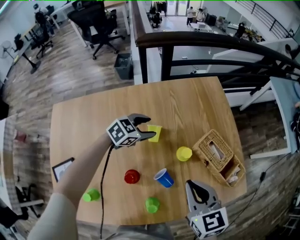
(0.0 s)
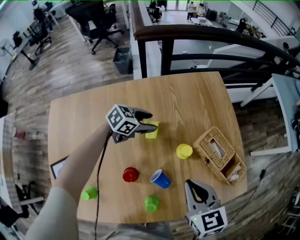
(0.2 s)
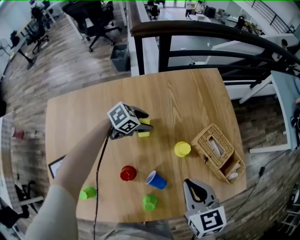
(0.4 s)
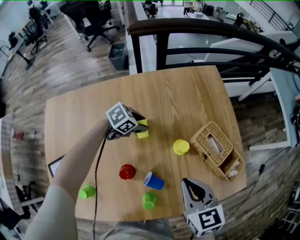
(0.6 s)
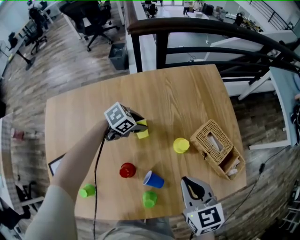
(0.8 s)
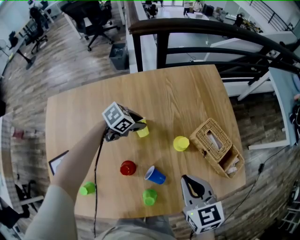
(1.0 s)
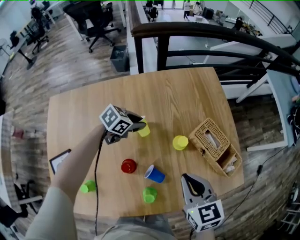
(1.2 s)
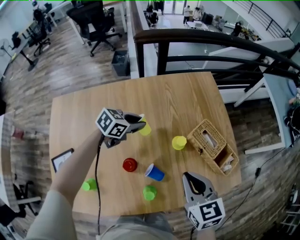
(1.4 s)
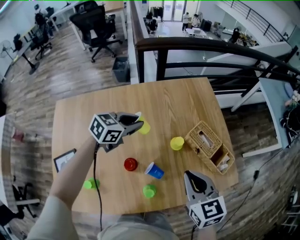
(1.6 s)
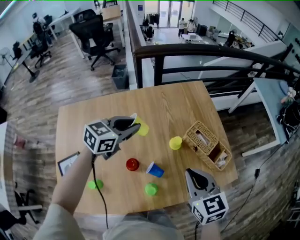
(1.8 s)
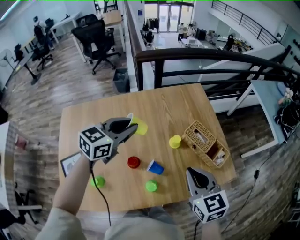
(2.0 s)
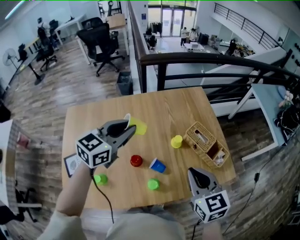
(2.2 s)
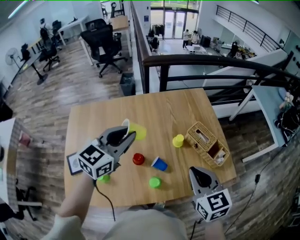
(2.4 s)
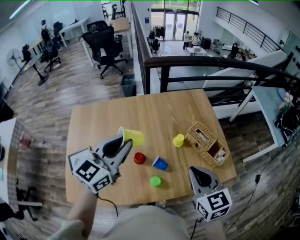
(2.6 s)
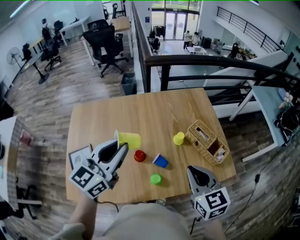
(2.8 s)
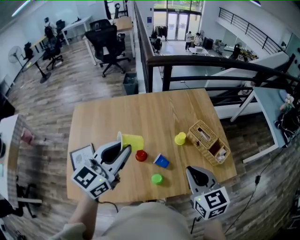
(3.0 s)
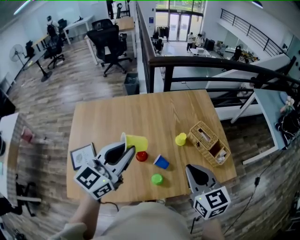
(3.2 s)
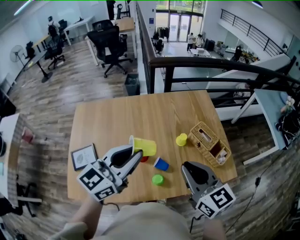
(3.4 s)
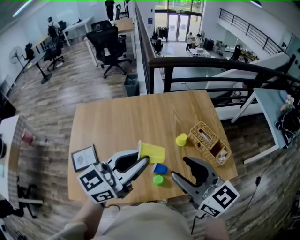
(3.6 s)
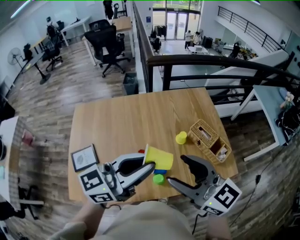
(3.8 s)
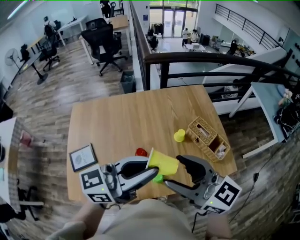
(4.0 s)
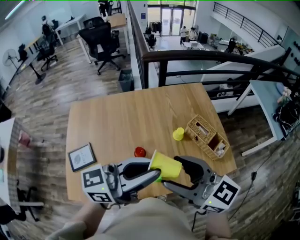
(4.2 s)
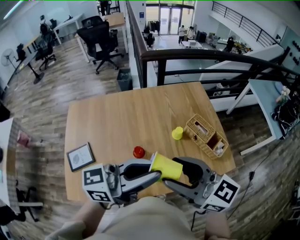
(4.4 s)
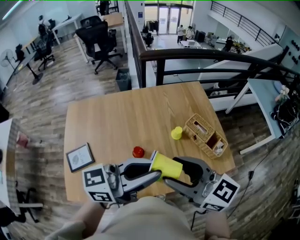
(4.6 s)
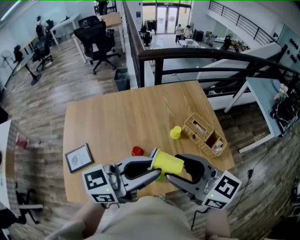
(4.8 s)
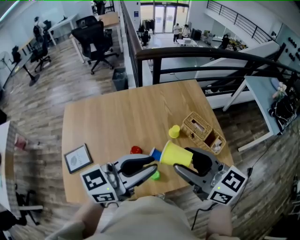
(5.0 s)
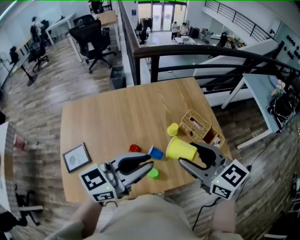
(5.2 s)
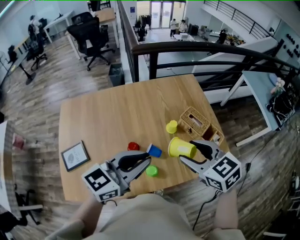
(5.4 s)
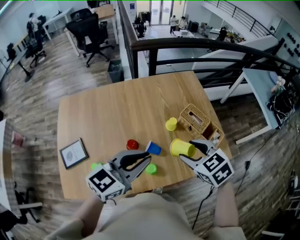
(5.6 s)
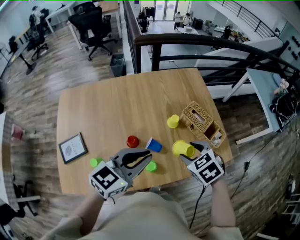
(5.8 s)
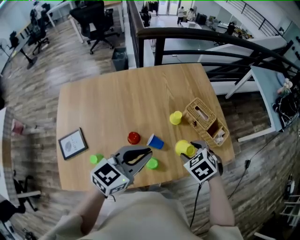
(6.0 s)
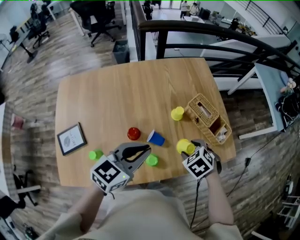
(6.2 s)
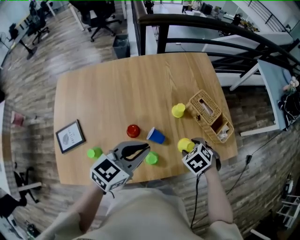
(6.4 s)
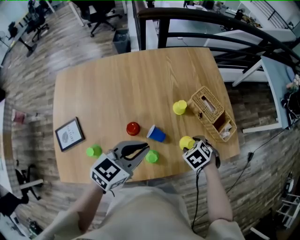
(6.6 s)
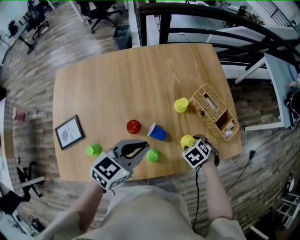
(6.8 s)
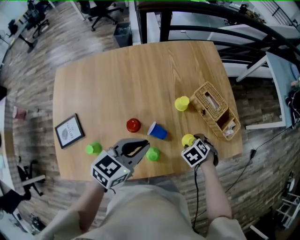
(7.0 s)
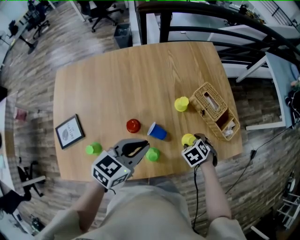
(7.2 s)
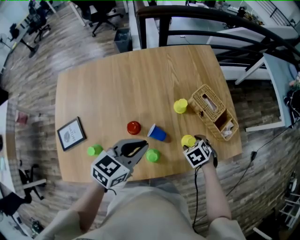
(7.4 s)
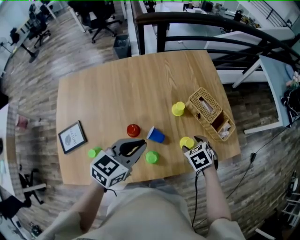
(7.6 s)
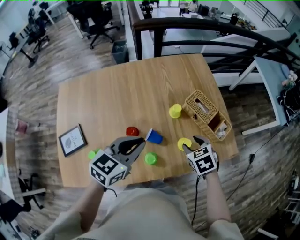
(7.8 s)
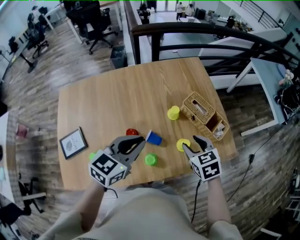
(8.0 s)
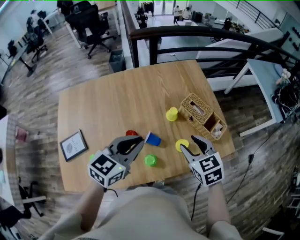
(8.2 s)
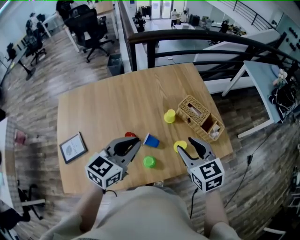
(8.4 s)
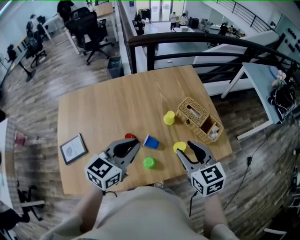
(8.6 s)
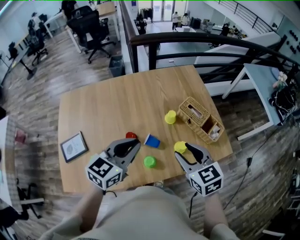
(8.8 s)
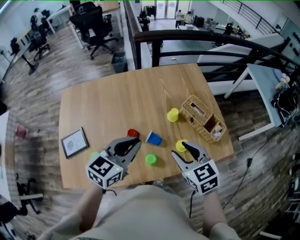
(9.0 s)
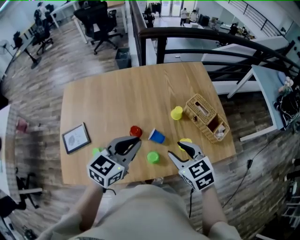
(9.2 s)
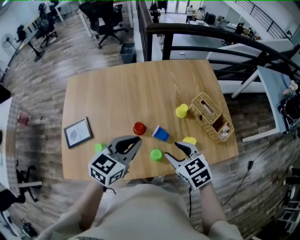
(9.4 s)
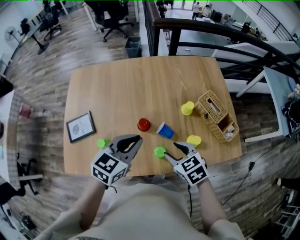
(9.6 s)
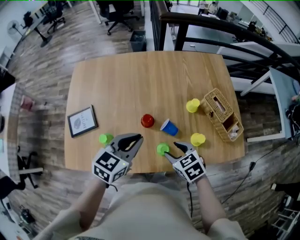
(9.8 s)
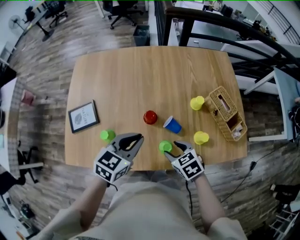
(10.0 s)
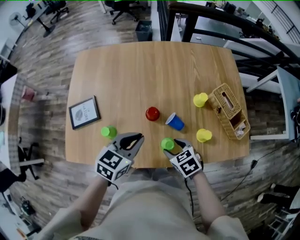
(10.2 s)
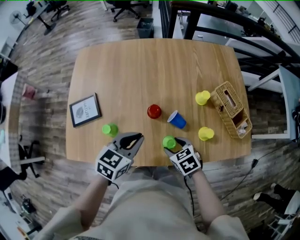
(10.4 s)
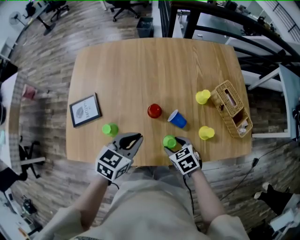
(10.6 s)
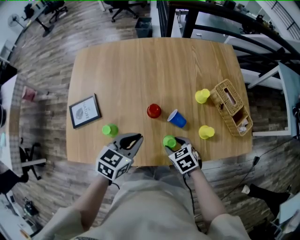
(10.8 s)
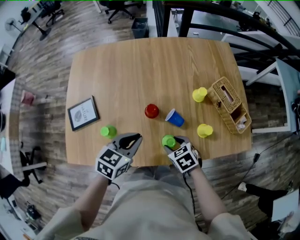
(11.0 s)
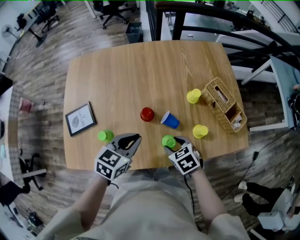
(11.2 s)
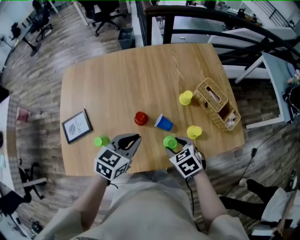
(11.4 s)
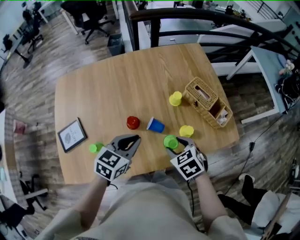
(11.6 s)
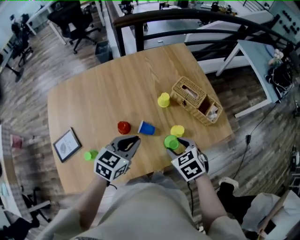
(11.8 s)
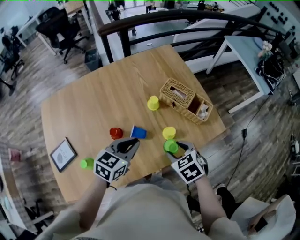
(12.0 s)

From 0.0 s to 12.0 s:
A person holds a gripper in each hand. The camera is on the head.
From 0.0 s to 1.6 s: The left gripper is displaced upward and backward by about 15 cm, and closes its fingers. Meanwhile the right gripper moves about 5 cm.
From 1.6 s to 3.0 s: The right gripper travels backward and upward by some 15 cm. Meanwhile the left gripper is displaced backward and upward by approximately 35 cm, and rotates roughly 40 degrees.
From 3.0 s to 4.4 s: The right gripper travels upward and to the left by some 15 cm, changes its angle by about 40 degrees, and opens up. The left gripper is displaced to the right and backward by some 10 cm, and swivels about 50 degrees.
From 4.4 s to 6.0 s: The right gripper moves downward and to the right, approximately 25 cm, and tilts its fingers roughly 60 degrees downward; the left gripper travels downward by approximately 15 cm, and points its fingers about 30 degrees further downward.
From 6.0 s to 7.6 s: The left gripper shifts some 5 cm downward. Meanwhile the right gripper goes approximately 10 cm downward.
From 7.6 s to 9.0 s: The right gripper is displaced upward by about 20 cm, and tilts its fingers roughly 30 degrees upward; the left gripper shifts roughly 5 cm upward.
From 9.0 s to 10.4 s: The two grippers go roughly 20 cm downward and to the left. The right gripper rotates about 30 degrees; the left gripper turns by some 20 degrees.
From 10.4 s to 12.0 s: The left gripper ends up roughly 15 cm from where it was, and turns by roughly 20 degrees. The right gripper shifts by about 20 cm, and turns by roughly 20 degrees.

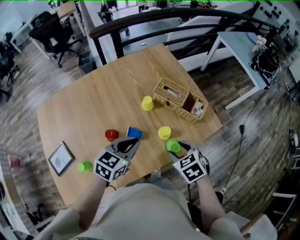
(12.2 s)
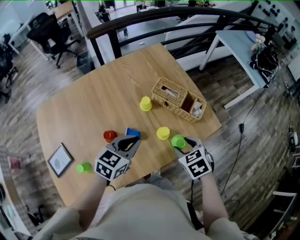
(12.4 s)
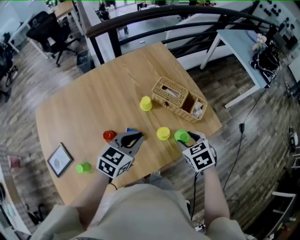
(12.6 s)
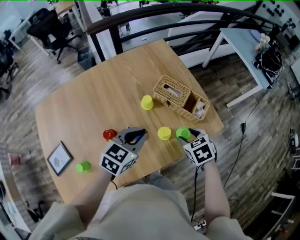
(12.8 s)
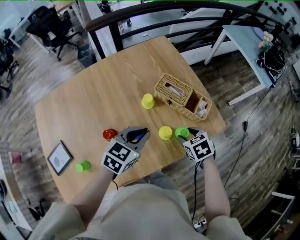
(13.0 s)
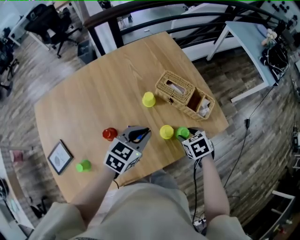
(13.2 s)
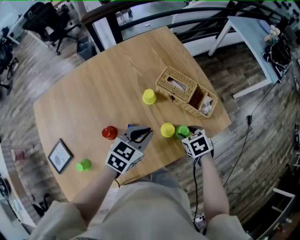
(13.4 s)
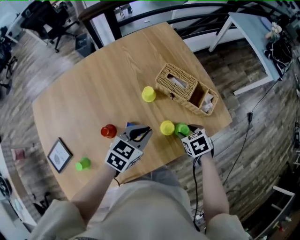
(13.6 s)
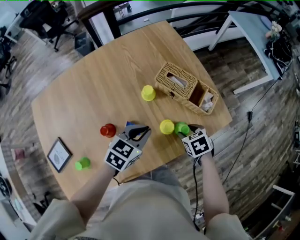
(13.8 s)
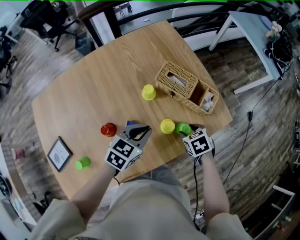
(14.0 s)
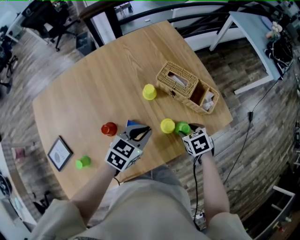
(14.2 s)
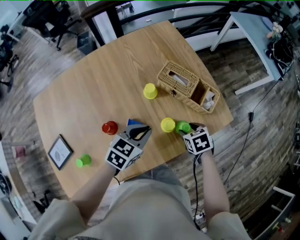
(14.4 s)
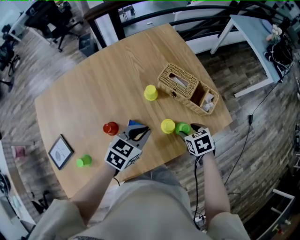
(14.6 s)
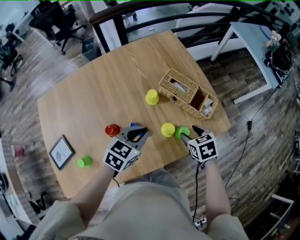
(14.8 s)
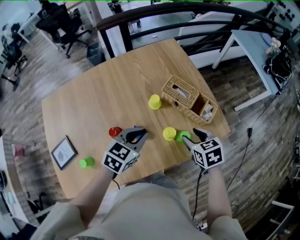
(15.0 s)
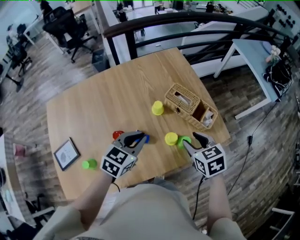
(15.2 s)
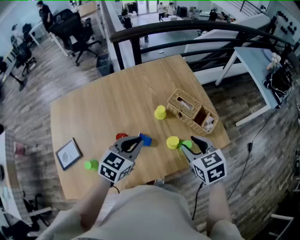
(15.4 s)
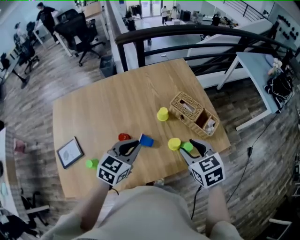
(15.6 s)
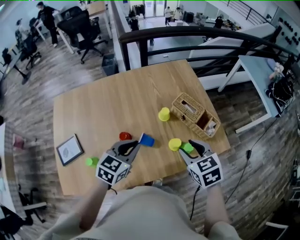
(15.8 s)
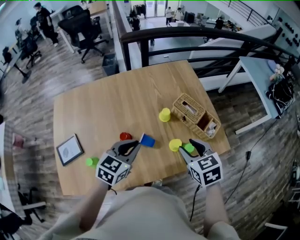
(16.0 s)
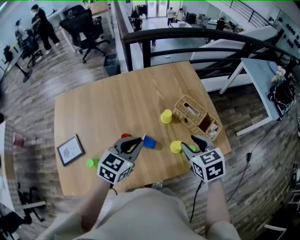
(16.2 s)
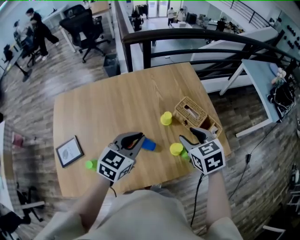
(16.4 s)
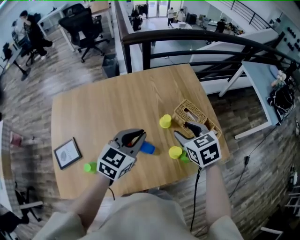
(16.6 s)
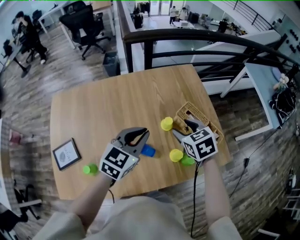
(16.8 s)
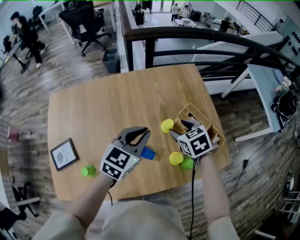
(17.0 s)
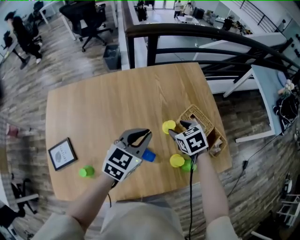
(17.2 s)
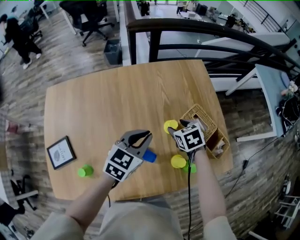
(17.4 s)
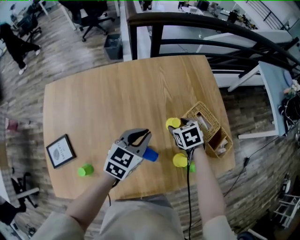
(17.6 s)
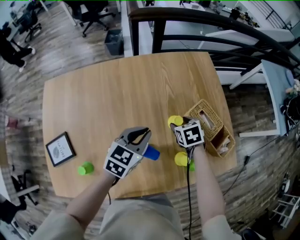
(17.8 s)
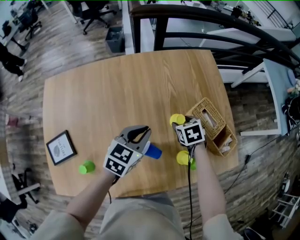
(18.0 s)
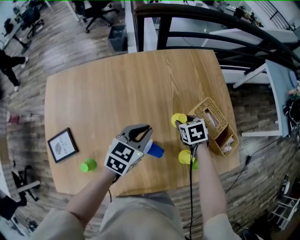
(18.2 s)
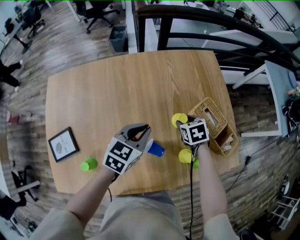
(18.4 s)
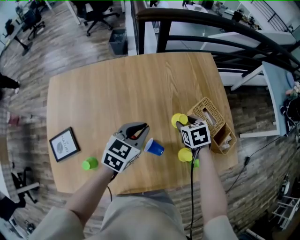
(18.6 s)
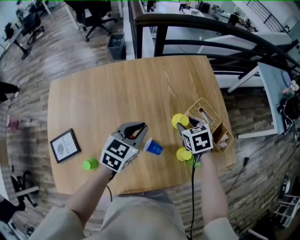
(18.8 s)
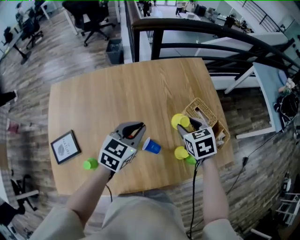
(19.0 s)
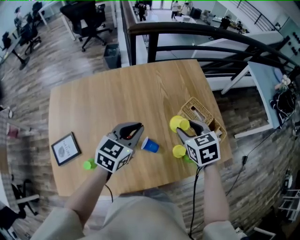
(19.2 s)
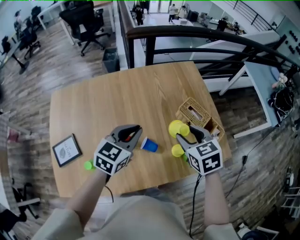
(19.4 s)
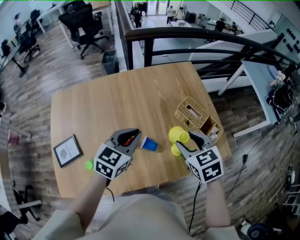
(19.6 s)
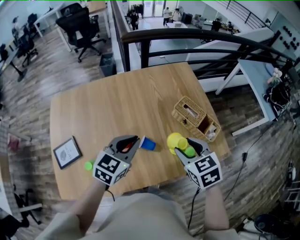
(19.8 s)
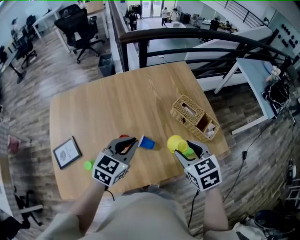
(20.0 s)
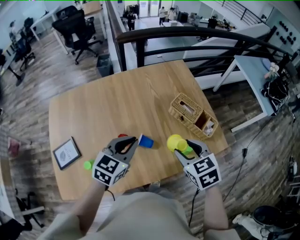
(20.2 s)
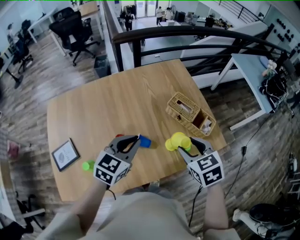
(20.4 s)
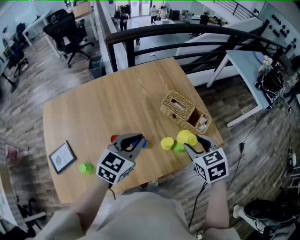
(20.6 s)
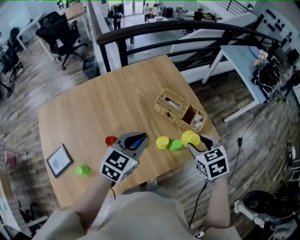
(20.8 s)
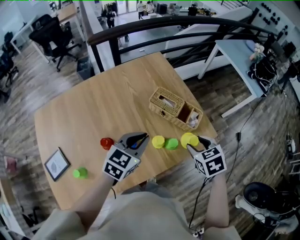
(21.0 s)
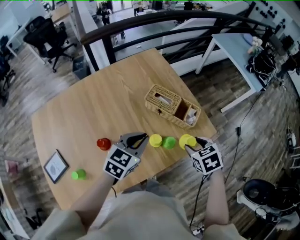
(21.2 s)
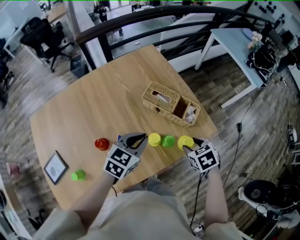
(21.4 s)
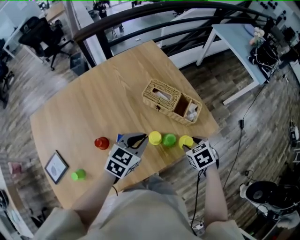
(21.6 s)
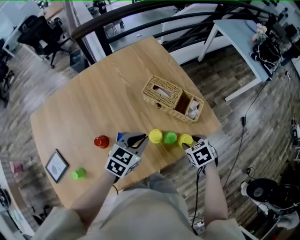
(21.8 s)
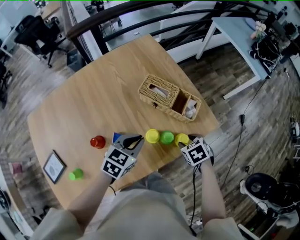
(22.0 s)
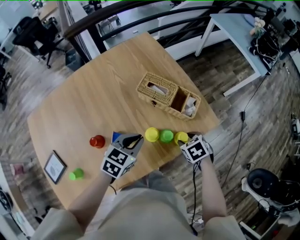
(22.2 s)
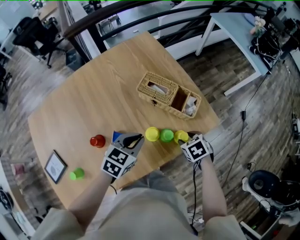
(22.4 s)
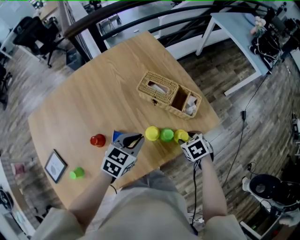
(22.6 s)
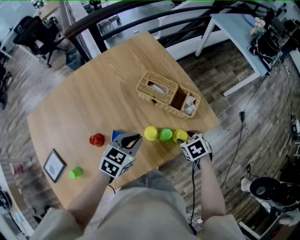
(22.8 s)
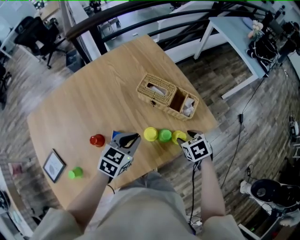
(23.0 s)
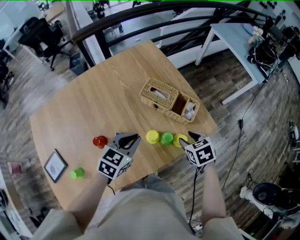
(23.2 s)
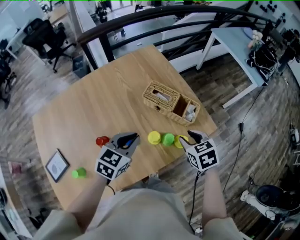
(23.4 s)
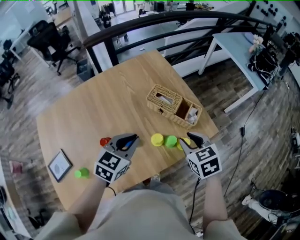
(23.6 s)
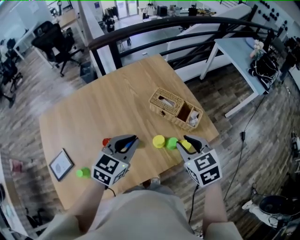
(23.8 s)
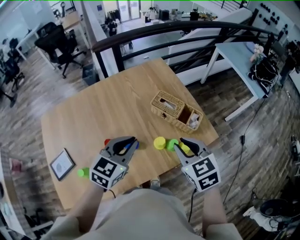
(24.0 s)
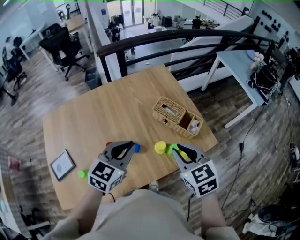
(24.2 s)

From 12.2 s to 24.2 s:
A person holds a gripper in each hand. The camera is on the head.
From 12.2 s to 13.8 s: The right gripper goes about 15 cm downward and forward. The left gripper travels downward and forward by roughly 10 cm.
From 13.8 s to 15.2 s: The right gripper travels upward by some 15 cm, and rotates roughly 20 degrees; the left gripper is displaced upward by approximately 10 cm.
From 15.2 s to 16.6 s: The right gripper is displaced to the left, forward and upward by approximately 15 cm, while the left gripper goes some 10 cm upward and to the left.
From 16.6 s to 18.2 s: The right gripper shifts approximately 25 cm downward and forward, while the left gripper goes some 15 cm downward and forward.
From 18.2 s to 19.8 s: The right gripper heads upward and backward, covering roughly 30 cm. Meanwhile the left gripper is displaced backward and upward by approximately 15 cm.
From 19.8 s to 21.2 s: The right gripper shifts about 20 cm to the right and downward, and changes its angle by some 20 degrees, while the left gripper heads to the right, covering some 15 cm.
From 21.2 s to 22.6 s: The left gripper moves downward, about 10 cm, while the right gripper heads downward, covering some 15 cm.
From 22.6 s to 24.2 s: The left gripper heads upward and to the left, covering some 20 cm, and changes its angle by about 20 degrees; the right gripper shifts some 30 cm upward and to the left, tilts its fingers some 40 degrees upward, and closes its fingers.
